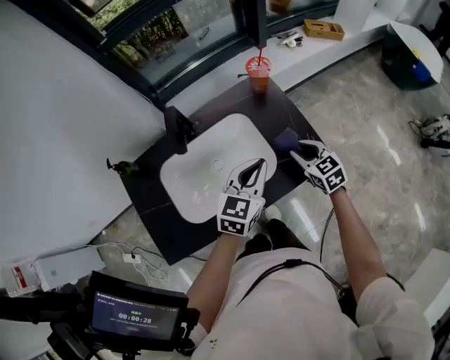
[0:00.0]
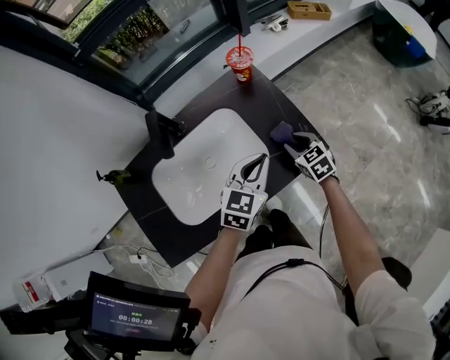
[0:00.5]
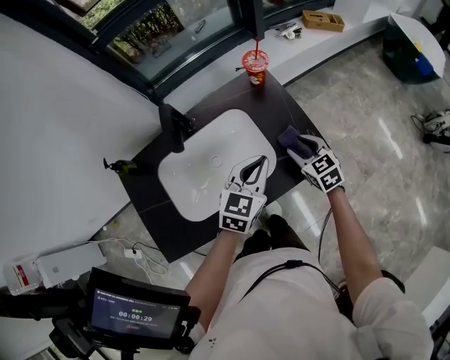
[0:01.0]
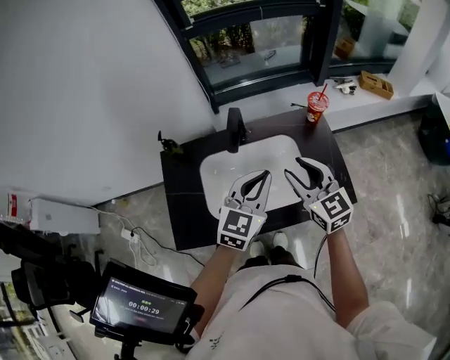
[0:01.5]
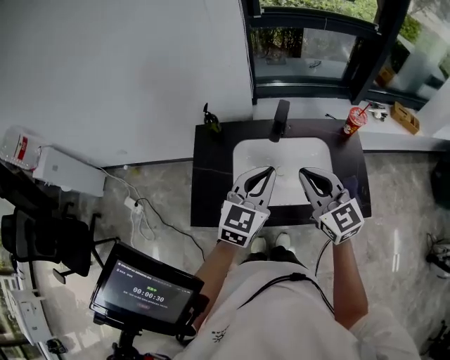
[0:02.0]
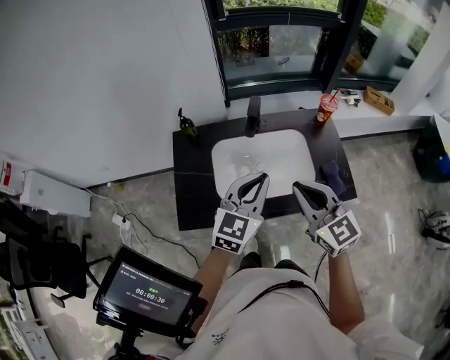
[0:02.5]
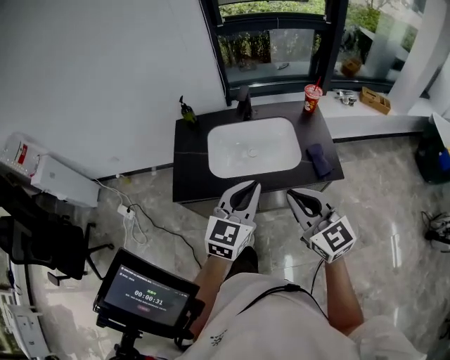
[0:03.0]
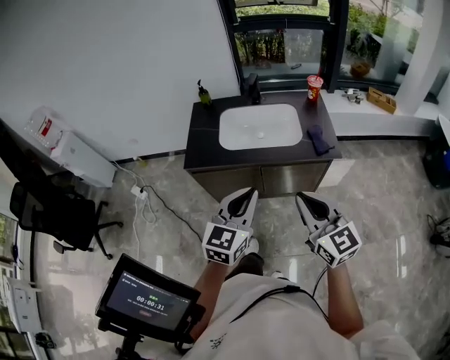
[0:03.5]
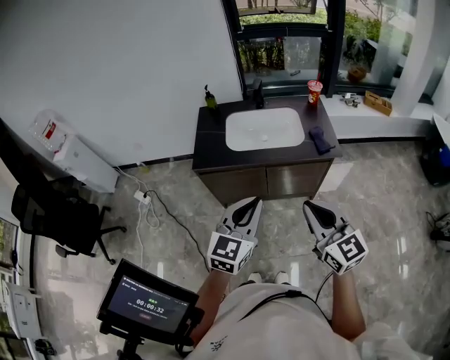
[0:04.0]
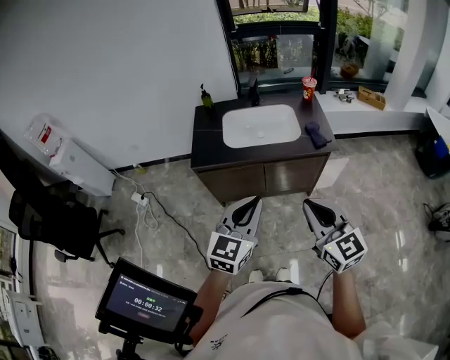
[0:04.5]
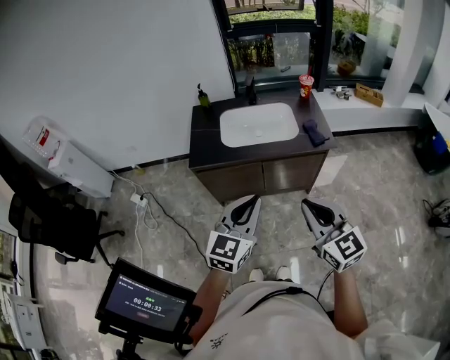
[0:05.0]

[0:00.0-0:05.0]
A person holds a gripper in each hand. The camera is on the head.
0:00.0 to 0:02.5: The left gripper shifts by about 20 cm, and swivels some 20 degrees. The right gripper changes place by some 35 cm, changes its angle by about 30 degrees, and closes its fingers.
0:02.5 to 0:05.0: The two grippers go about 40 cm backward.

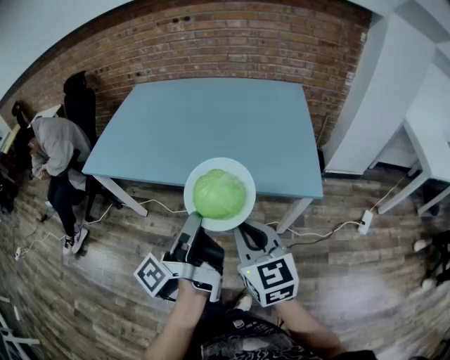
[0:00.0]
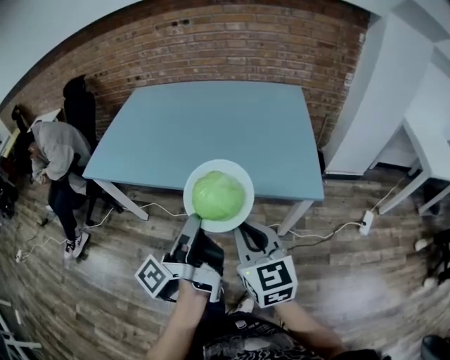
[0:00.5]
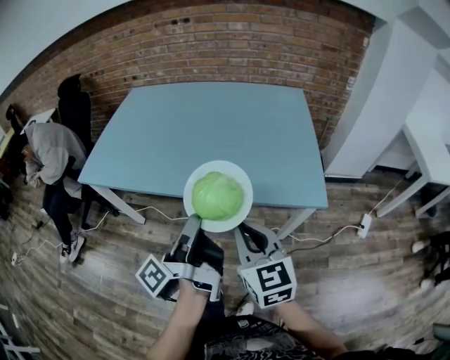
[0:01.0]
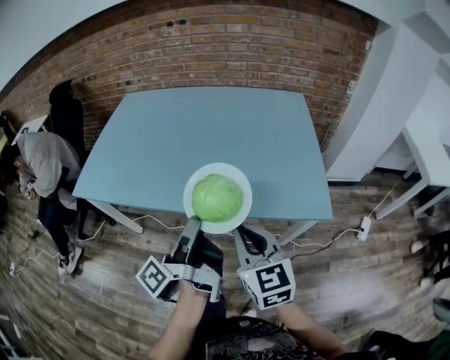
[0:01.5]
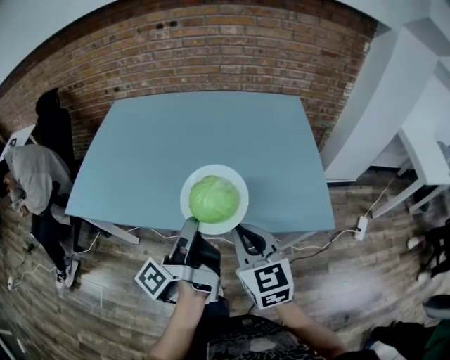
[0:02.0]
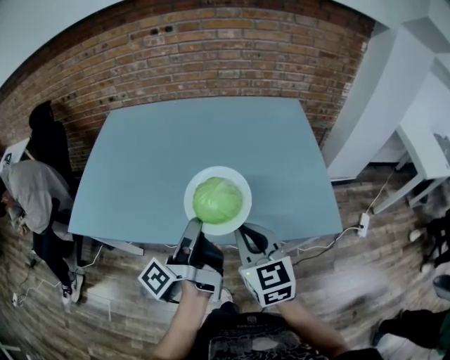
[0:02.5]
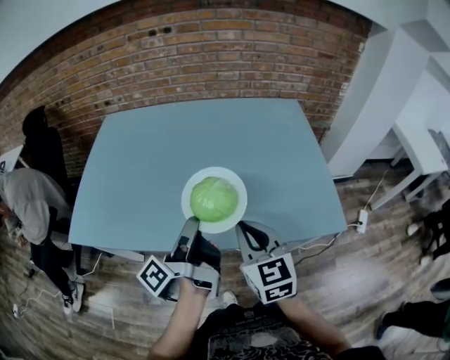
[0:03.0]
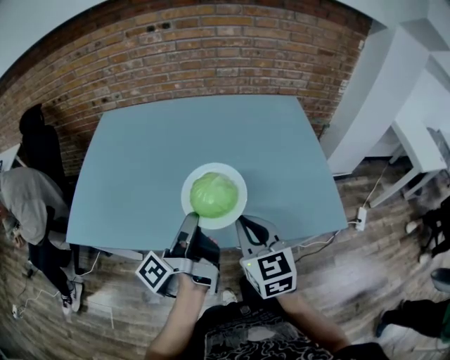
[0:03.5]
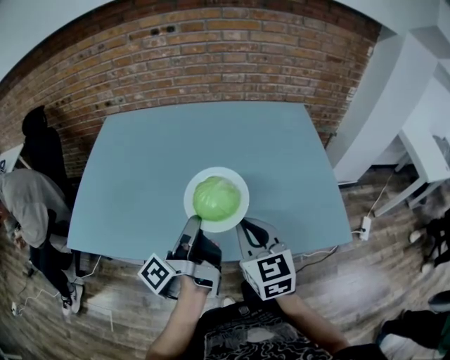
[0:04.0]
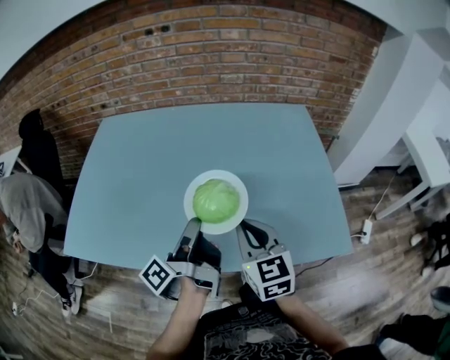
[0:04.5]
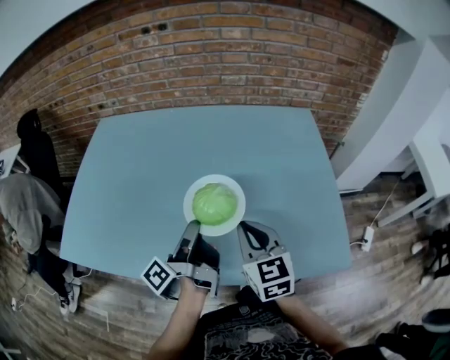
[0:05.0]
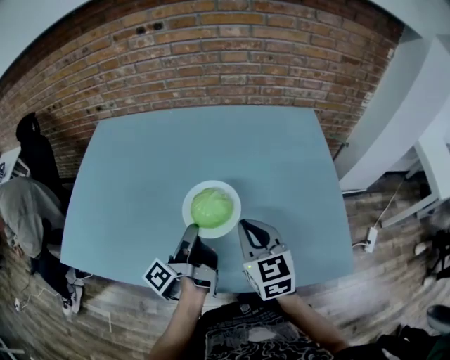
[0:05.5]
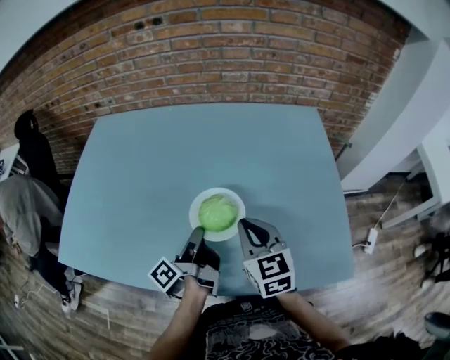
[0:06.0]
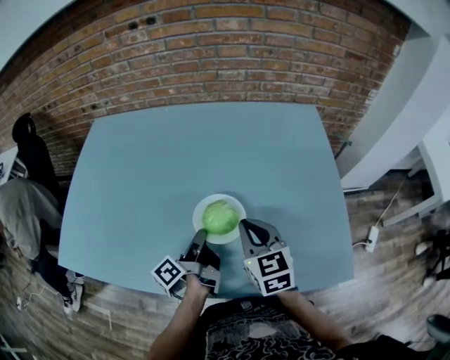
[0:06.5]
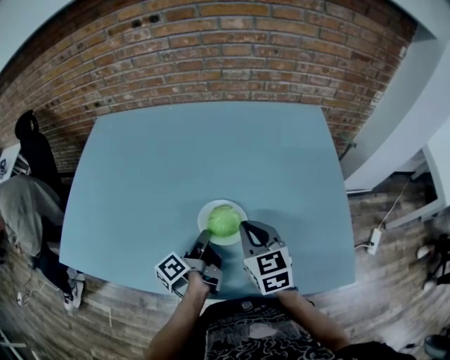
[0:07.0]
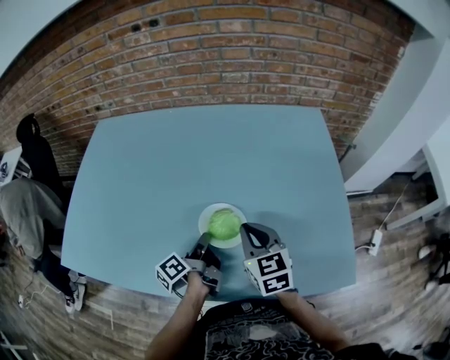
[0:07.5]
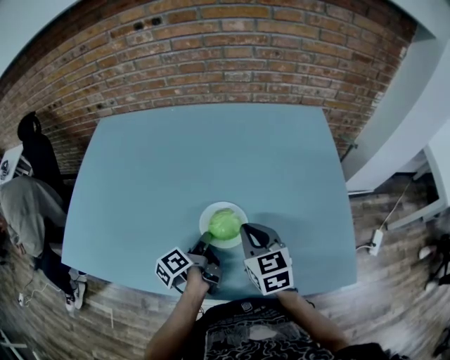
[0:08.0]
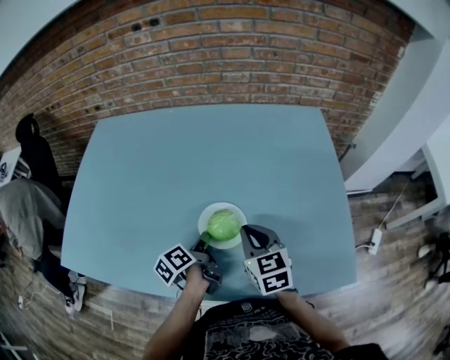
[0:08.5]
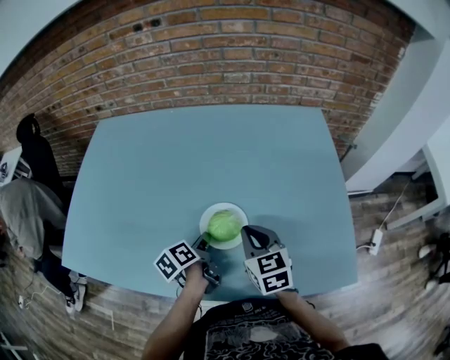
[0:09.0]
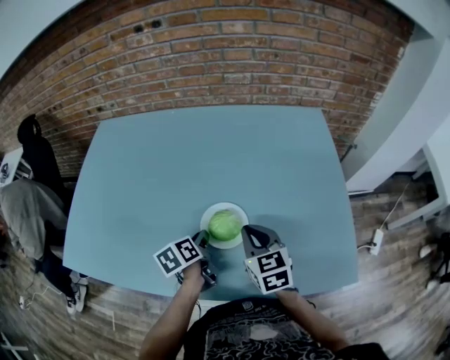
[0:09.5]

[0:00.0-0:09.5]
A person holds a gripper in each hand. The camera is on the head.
0:00.0 to 0:02.0: The right gripper ends up about 15 cm from where it was.
0:02.0 to 0:04.0: The right gripper moves about 15 cm.
0:04.0 to 0:05.5: The right gripper ends up approximately 10 cm from where it was.
0:05.5 to 0:07.5: The right gripper goes some 5 cm downward.

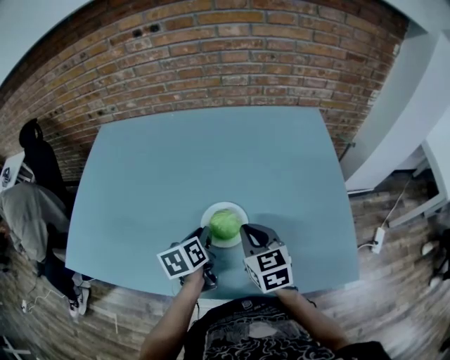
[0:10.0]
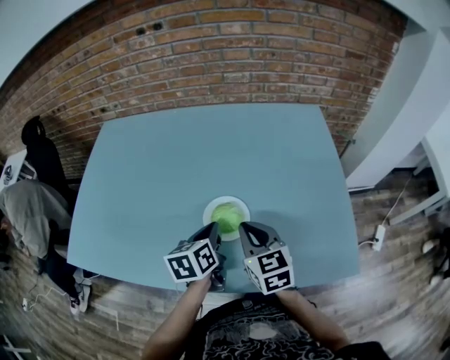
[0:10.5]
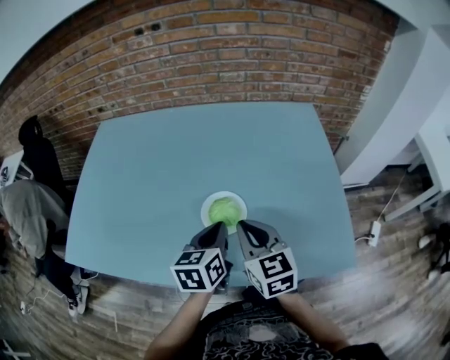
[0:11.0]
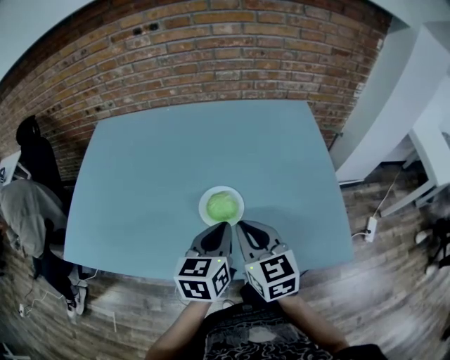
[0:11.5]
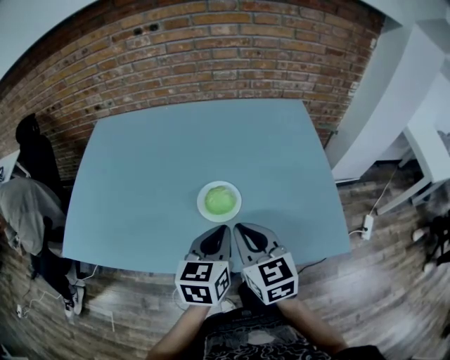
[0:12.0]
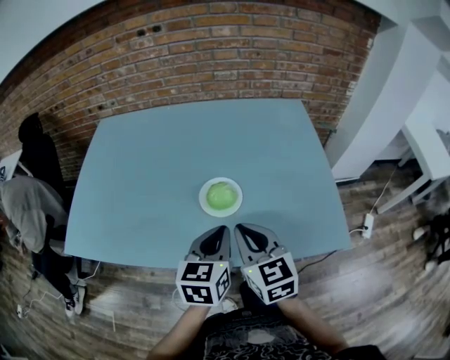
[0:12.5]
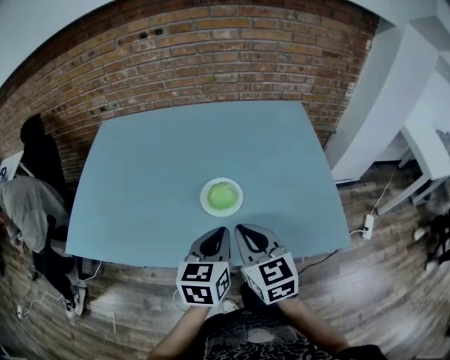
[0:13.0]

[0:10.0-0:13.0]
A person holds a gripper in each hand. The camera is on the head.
0:10.0 to 0:11.5: The right gripper is displaced upward by roughly 5 cm.
0:11.5 to 0:13.0: The right gripper shifts by roughly 5 cm.

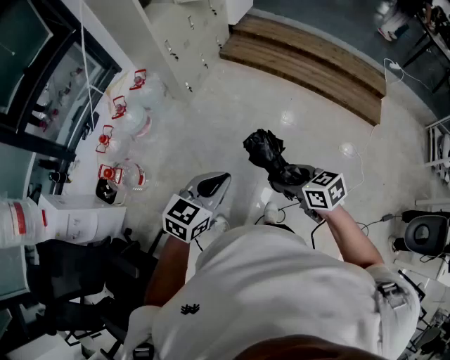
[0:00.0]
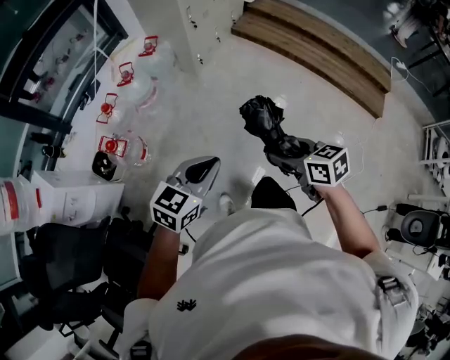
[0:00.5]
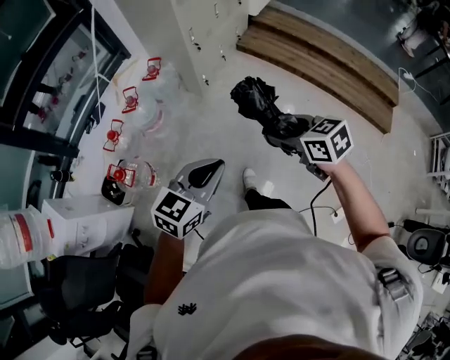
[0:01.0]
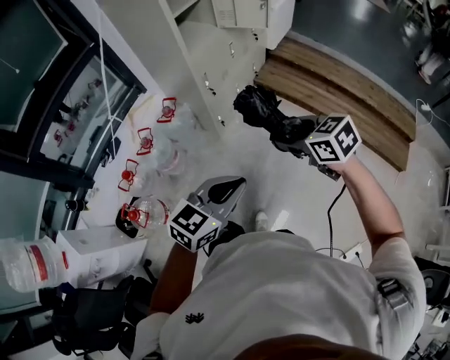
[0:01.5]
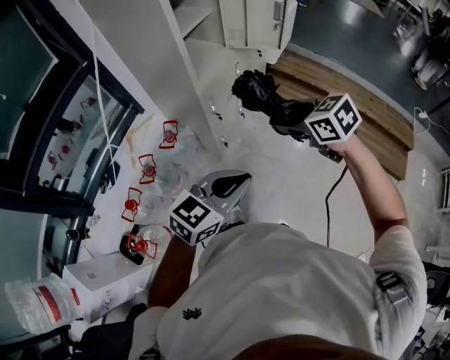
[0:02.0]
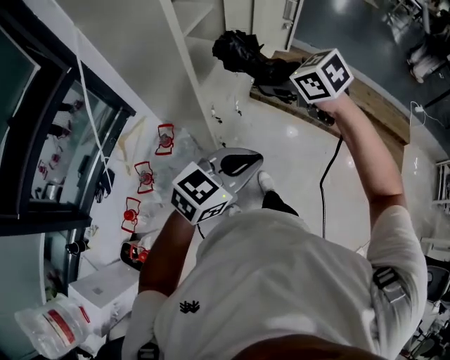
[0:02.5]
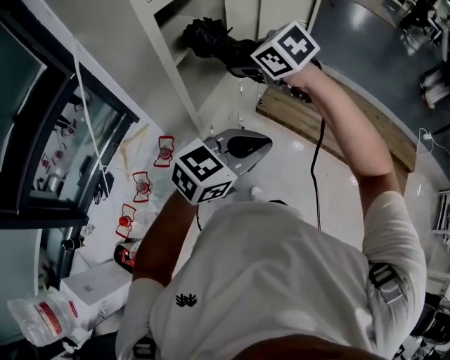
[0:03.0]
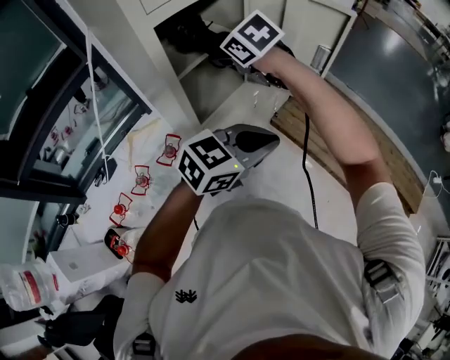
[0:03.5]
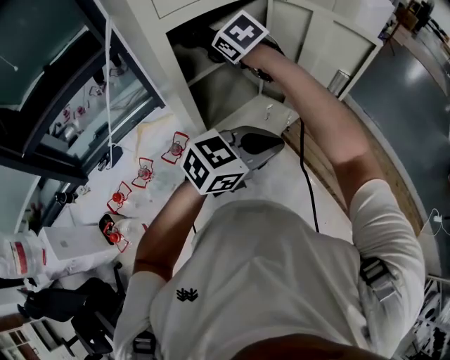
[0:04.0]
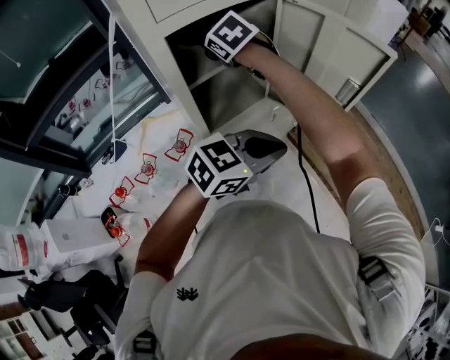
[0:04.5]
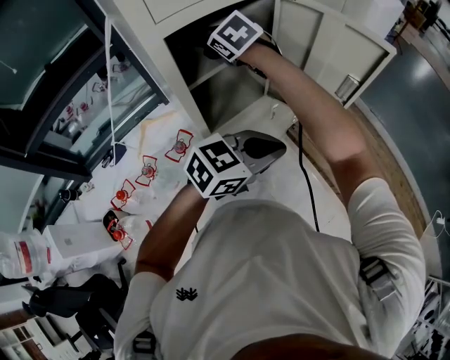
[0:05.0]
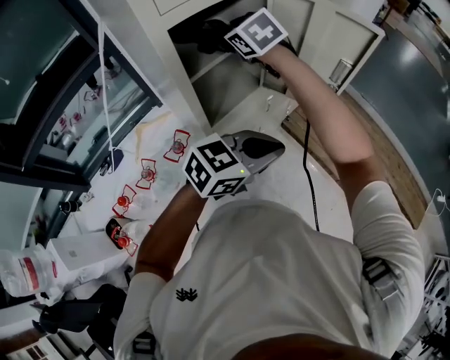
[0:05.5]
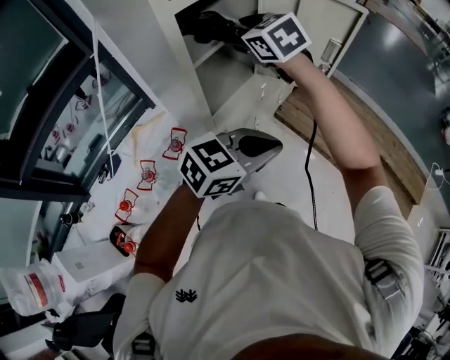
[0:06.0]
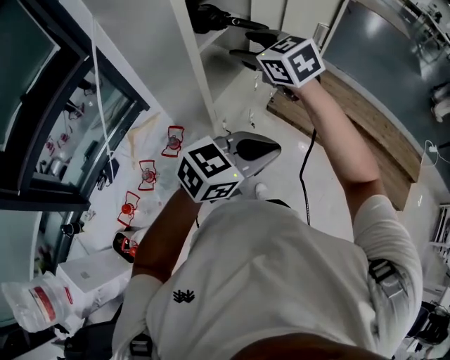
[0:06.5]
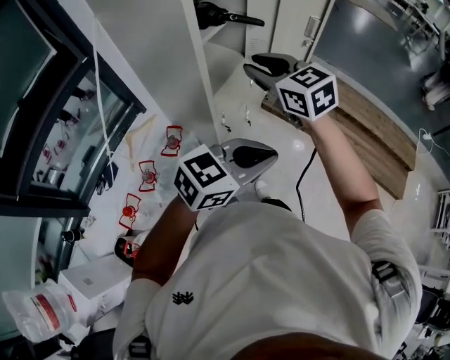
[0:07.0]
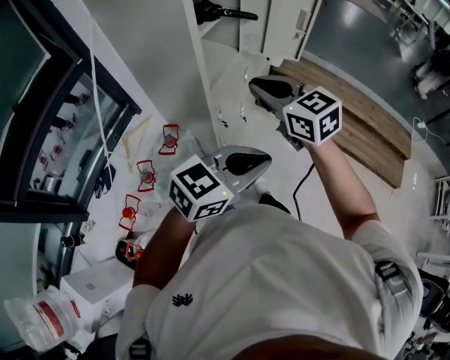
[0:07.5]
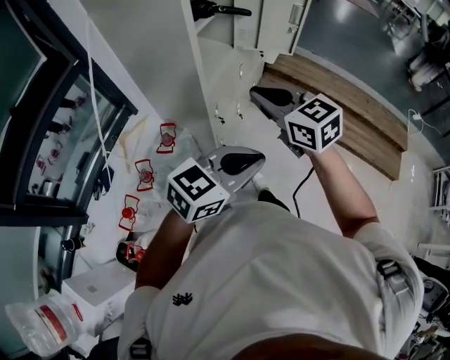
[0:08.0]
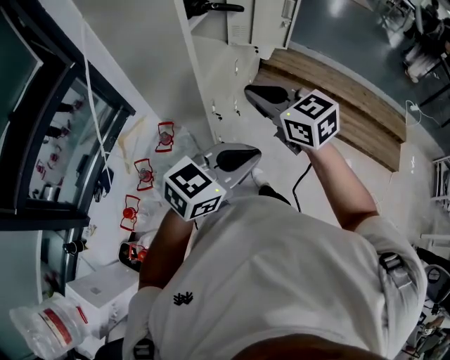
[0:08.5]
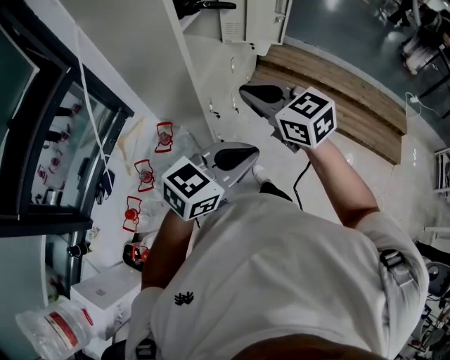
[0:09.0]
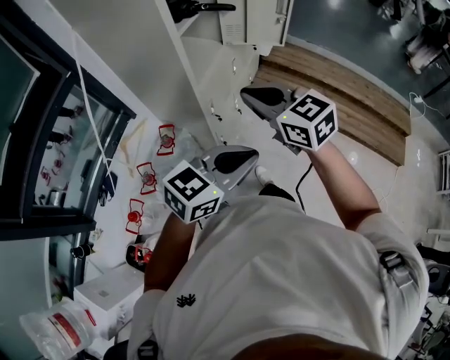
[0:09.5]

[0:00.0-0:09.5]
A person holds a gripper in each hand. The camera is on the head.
0:00.0 to 0:02.0: The pair of grippers is taken forward, approximately 60 cm. The right gripper changes its angle by about 20 degrees.
0:02.0 to 0:04.0: The left gripper goes roughly 40 cm forward, while the right gripper heads forward and to the left, covering about 50 cm, and rotates about 30 degrees.
0:04.0 to 0:05.5: The grippers stay close to where they were, moving slightly.
0:05.5 to 0:07.5: The left gripper shifts about 25 cm backward. The right gripper is displaced backward and to the right by some 35 cm, swivels approximately 30 degrees, and closes.
0:07.5 to 0:09.5: The right gripper ends up roughly 5 cm from where it was.
